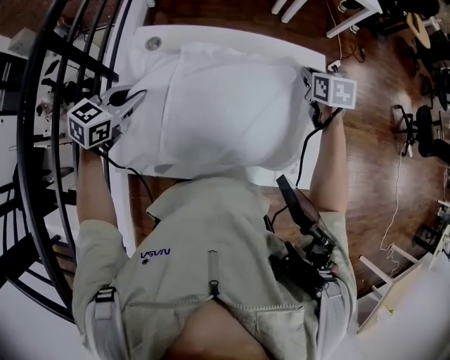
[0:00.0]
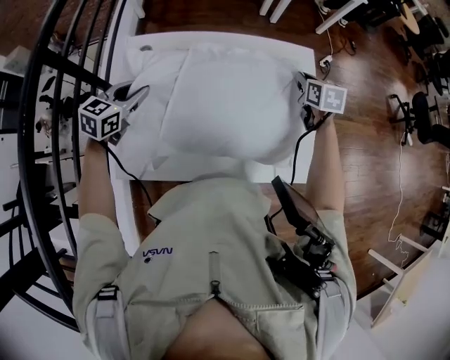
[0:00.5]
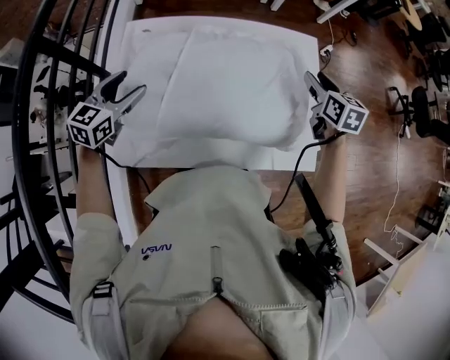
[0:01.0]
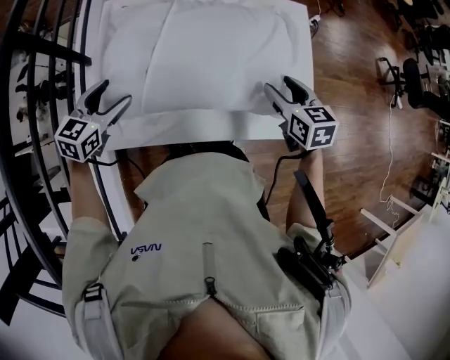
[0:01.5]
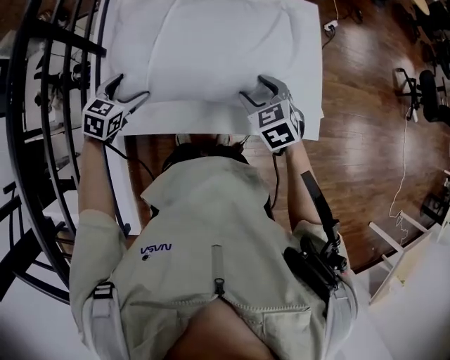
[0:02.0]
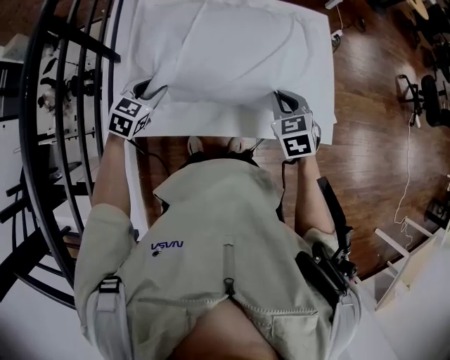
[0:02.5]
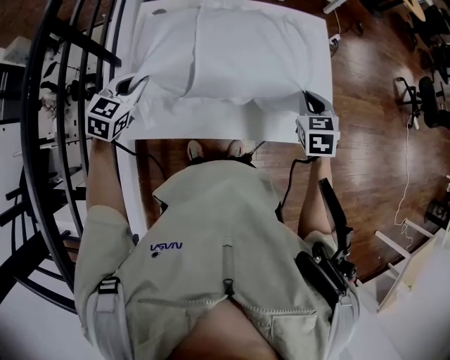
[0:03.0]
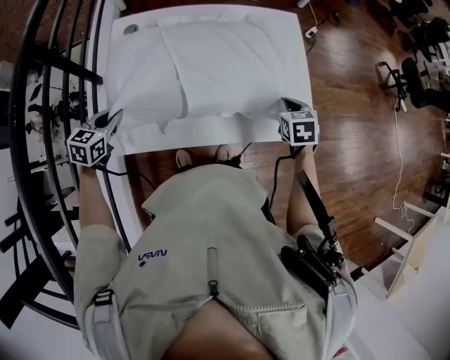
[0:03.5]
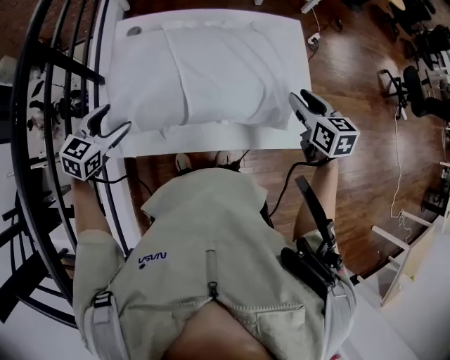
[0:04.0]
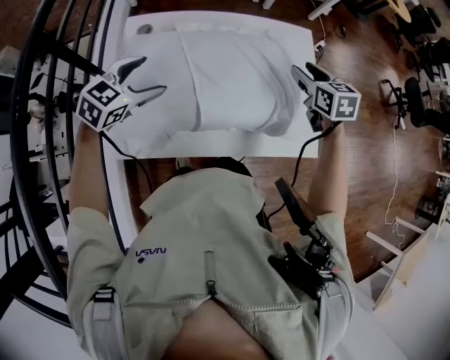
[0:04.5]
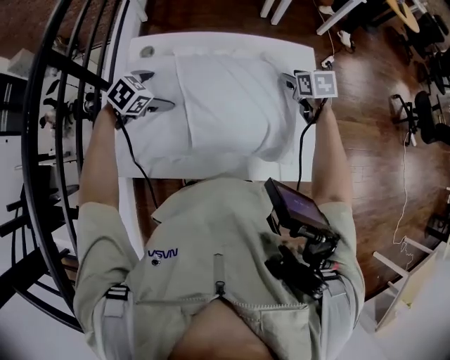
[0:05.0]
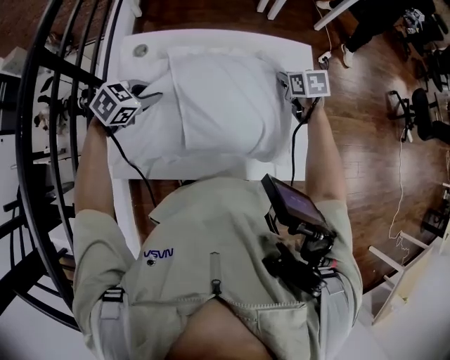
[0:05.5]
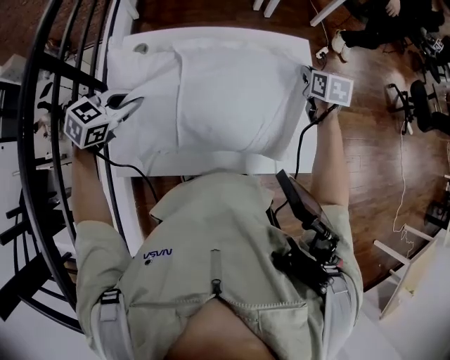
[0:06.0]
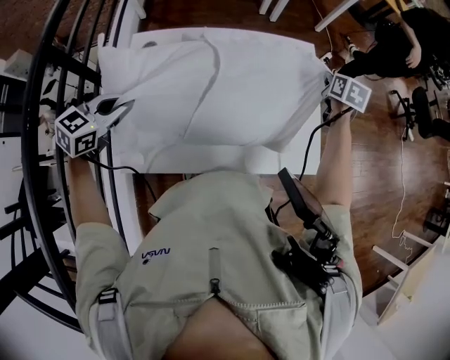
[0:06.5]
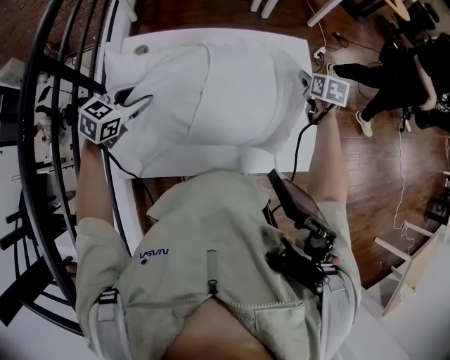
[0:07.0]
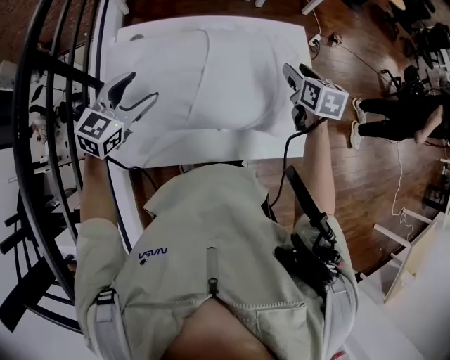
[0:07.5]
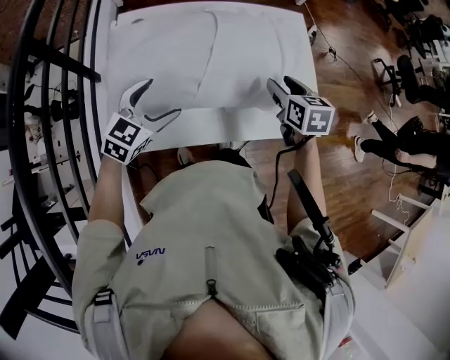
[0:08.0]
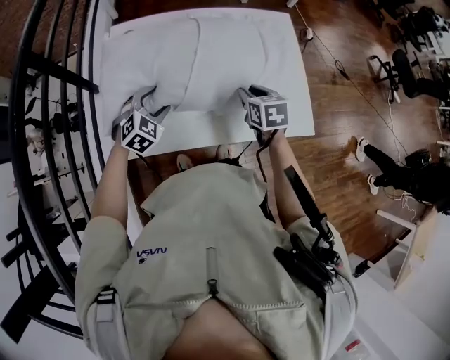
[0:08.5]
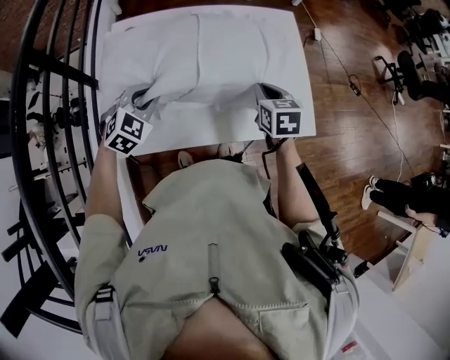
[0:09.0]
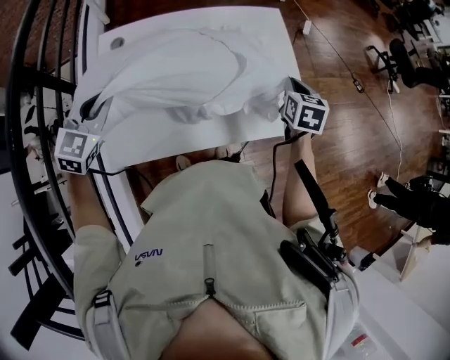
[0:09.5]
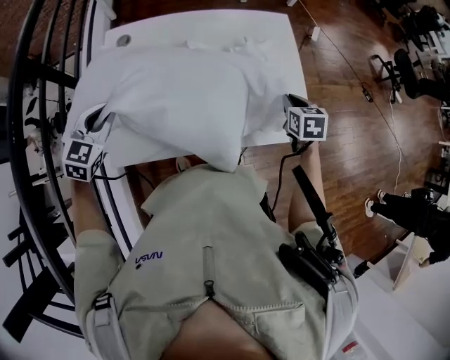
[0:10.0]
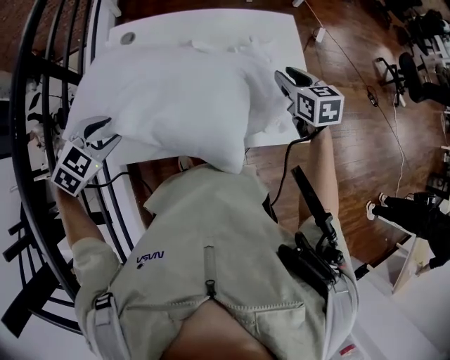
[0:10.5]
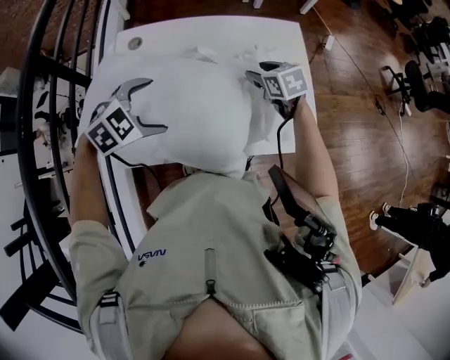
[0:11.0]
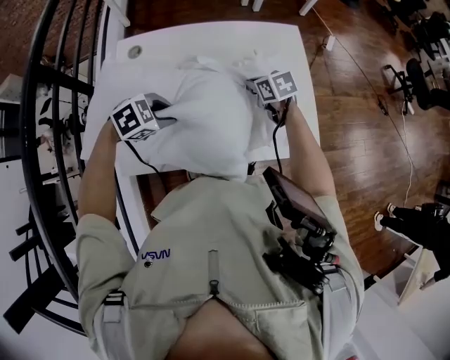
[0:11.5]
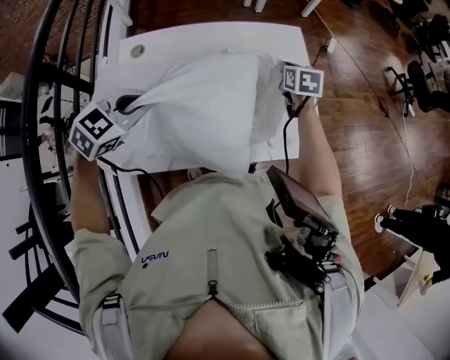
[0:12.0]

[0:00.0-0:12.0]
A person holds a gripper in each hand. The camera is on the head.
0:00.0 to 0:02.0: The left gripper heads downward and backward, covering roughly 15 cm, and opens, while the right gripper goes about 25 cm backward, rotates roughly 30 degrees, and opens.
0:02.0 to 0:04.0: The left gripper moves up and down over about 10 cm, changing direction 2 times, and closes and opens again. Meanwhile the right gripper moves to the right and upward, some 15 cm, rotates some 30 degrees, and closes its fingers.
0:04.0 to 0:06.0: The right gripper goes roughly 15 cm forward, and closes up; the left gripper shifts some 10 cm forward, and closes up.
0:06.0 to 0:08.0: The left gripper heads to the right, covering some 5 cm, and opens its fingers. The right gripper shifts roughly 20 cm backward, and opens up.
0:08.0 to 0:10.0: The right gripper goes approximately 15 cm to the right and downward, and closes, while the left gripper swings up and down, approximately 15 cm each way, with 2 reversals, and closes up.
0:10.0 to 0:12.0: The left gripper shifts by roughly 10 cm, changes its angle by some 20 degrees, and opens, then closes once more. The right gripper moves up and down over about 10 cm, changing direction 2 times, and opens and closes again.

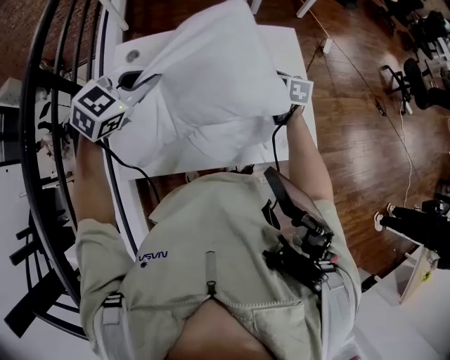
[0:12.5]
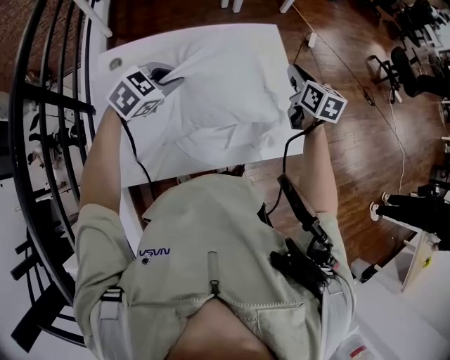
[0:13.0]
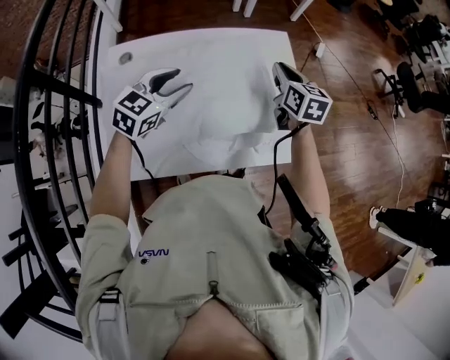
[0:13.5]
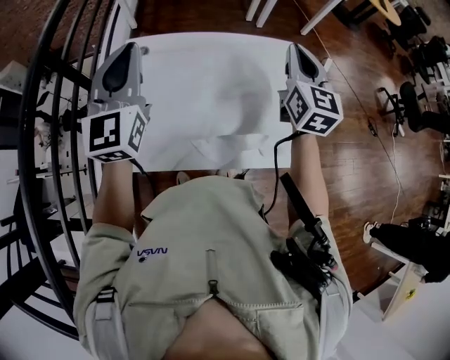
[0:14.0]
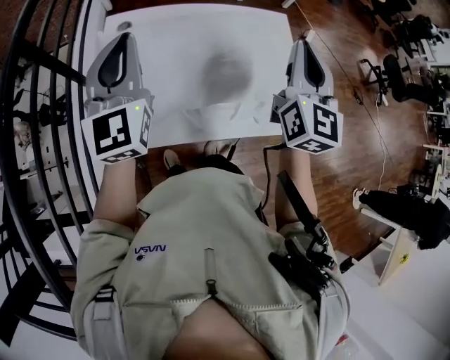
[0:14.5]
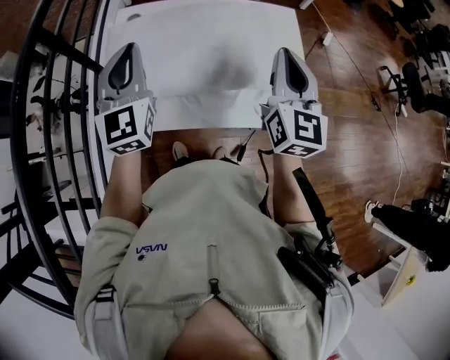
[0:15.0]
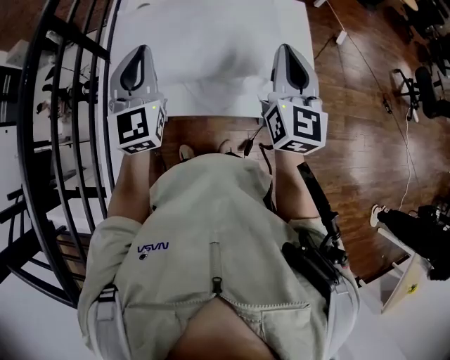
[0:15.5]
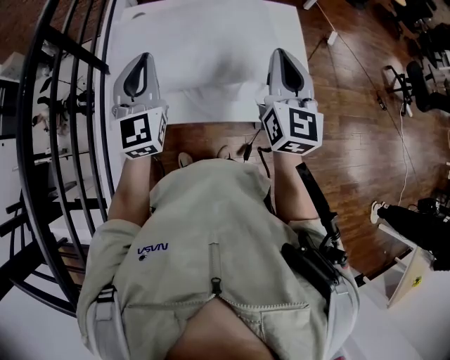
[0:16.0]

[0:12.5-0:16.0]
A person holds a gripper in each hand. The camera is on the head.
0:12.5 to 0:14.5: The left gripper moves upward, some 10 cm, angles its fingers upward, by roughly 40 degrees, and opens, then closes once more, while the right gripper goes about 30 cm upward, and tips its fingers upward by some 40 degrees.
0:14.5 to 0:16.0: The right gripper shifts about 10 cm downward and backward; the left gripper heads backward and downward, covering about 10 cm.

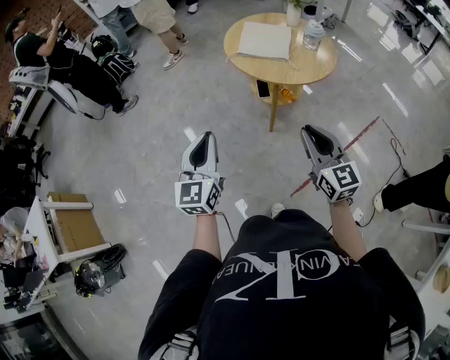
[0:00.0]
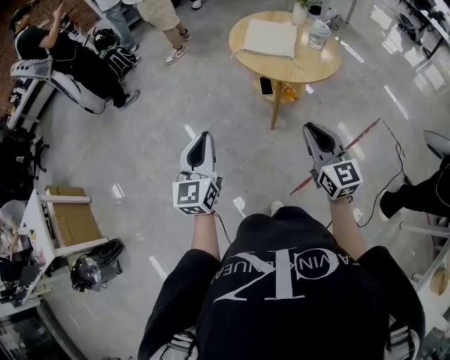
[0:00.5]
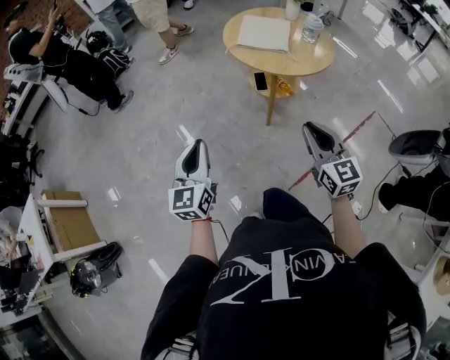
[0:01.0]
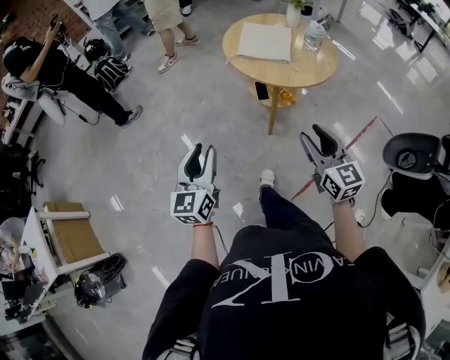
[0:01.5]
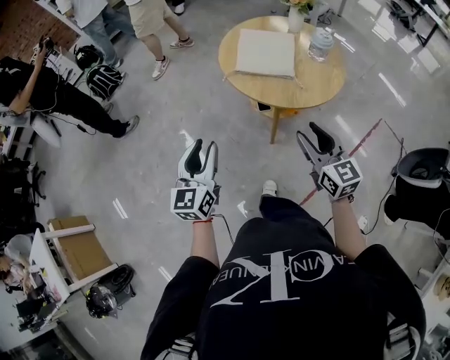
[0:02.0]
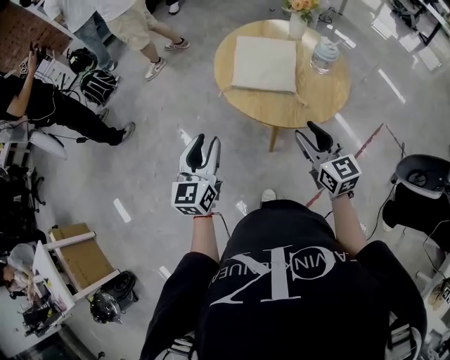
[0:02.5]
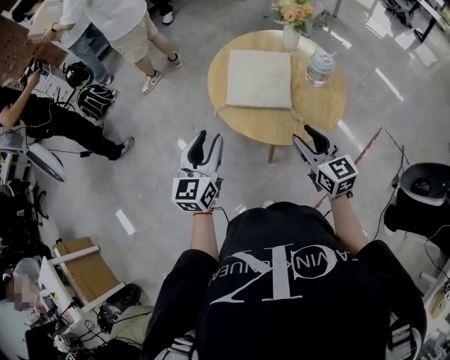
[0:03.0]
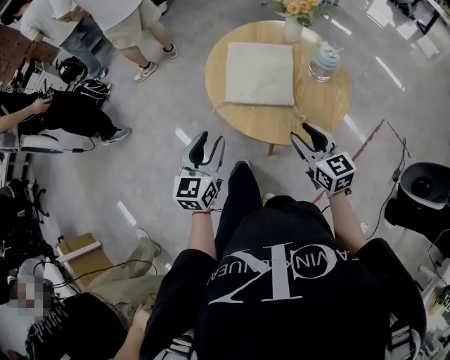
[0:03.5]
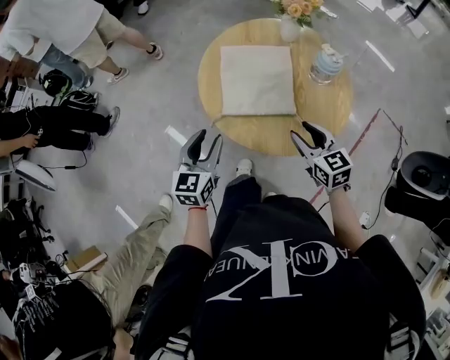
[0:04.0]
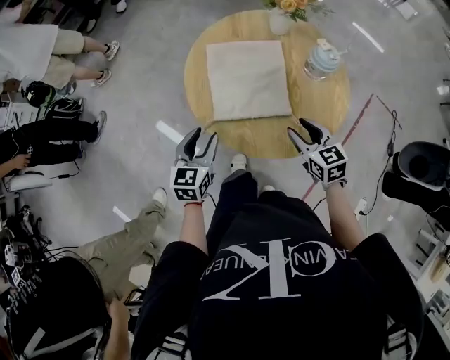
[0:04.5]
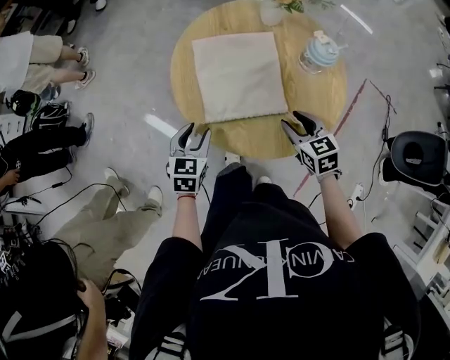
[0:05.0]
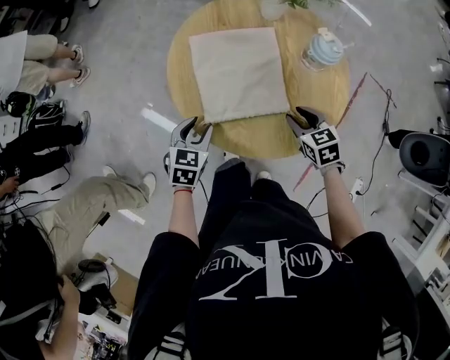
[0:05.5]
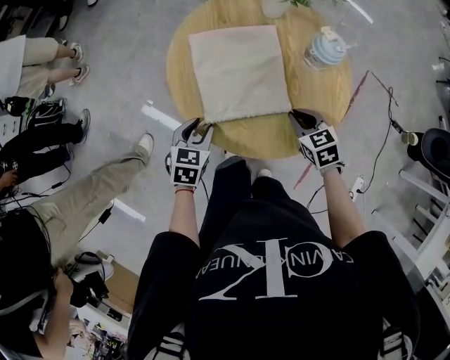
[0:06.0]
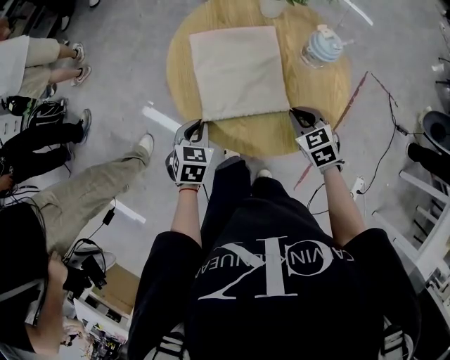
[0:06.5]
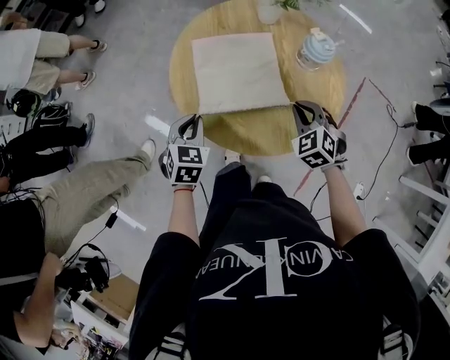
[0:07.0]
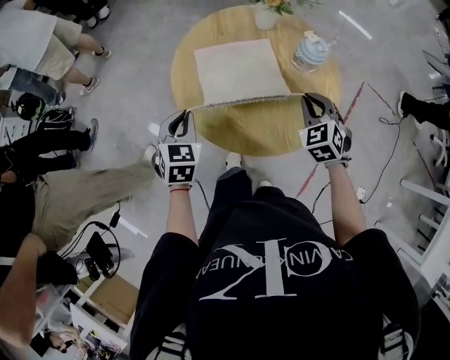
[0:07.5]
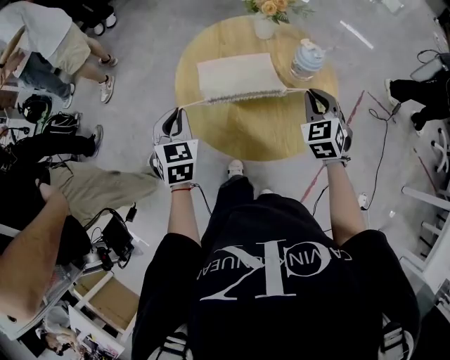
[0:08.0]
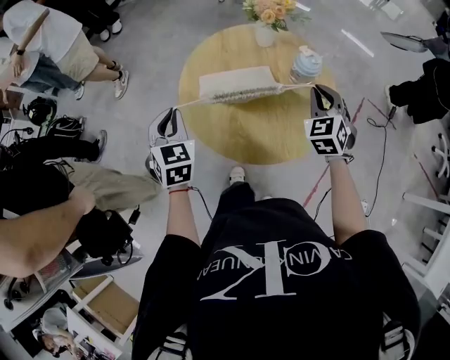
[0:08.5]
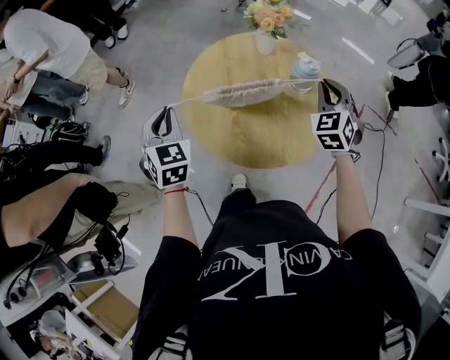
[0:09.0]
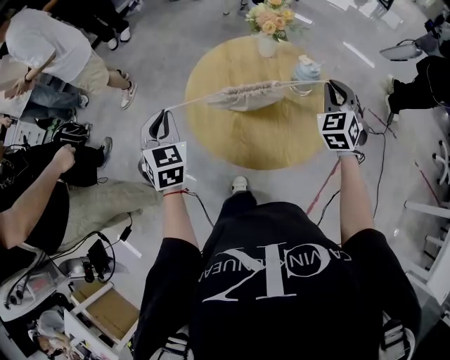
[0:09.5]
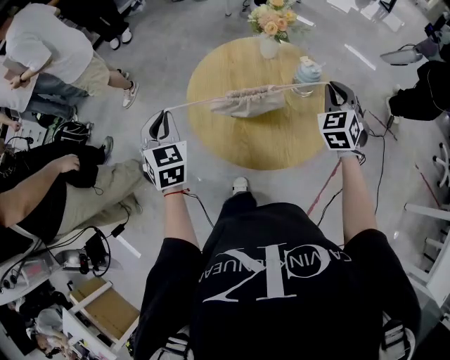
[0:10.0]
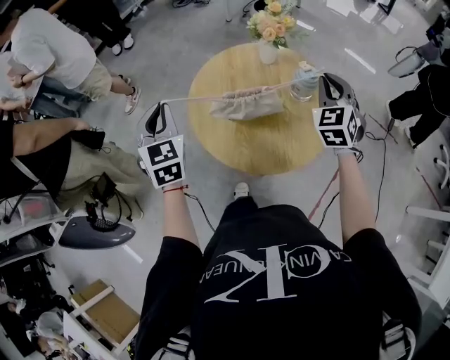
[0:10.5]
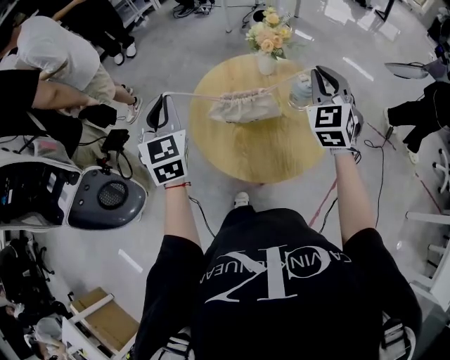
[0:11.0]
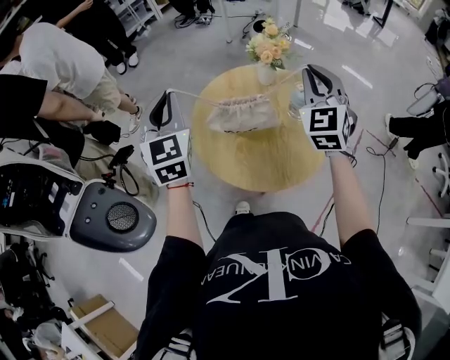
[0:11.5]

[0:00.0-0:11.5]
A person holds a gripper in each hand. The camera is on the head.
0:00.0 to 0:02.0: Both grippers travel together forward, roughly 15 cm. The right gripper opens up. The left gripper opens its fingers.
0:02.0 to 0:04.0: The left gripper heads forward, covering approximately 30 cm, and turns by about 20 degrees. Meanwhile the right gripper heads forward and downward, covering approximately 25 cm.
0:04.0 to 0:06.0: The two grippers go some 15 cm downward and forward. The right gripper rotates some 20 degrees, and closes up. The left gripper turns by roughly 30 degrees.
0:06.0 to 0:07.5: The two grippers go approximately 10 cm upward. The right gripper swivels about 30 degrees. The left gripper closes.
0:07.5 to 0:09.5: The right gripper is displaced upward and to the right by approximately 15 cm, and rotates roughly 20 degrees. The left gripper shifts roughly 15 cm upward and to the left.
0:09.5 to 0:11.5: The left gripper is displaced upward by roughly 15 cm, and rotates roughly 20 degrees; the right gripper travels upward and to the left by roughly 15 cm, and turns by roughly 20 degrees.
